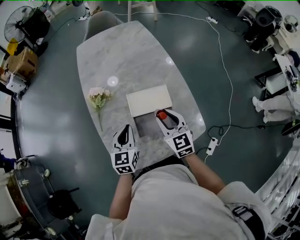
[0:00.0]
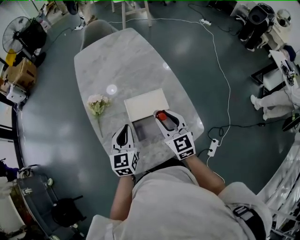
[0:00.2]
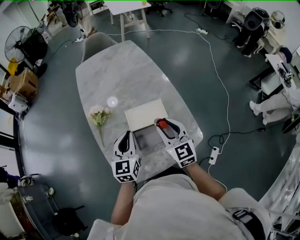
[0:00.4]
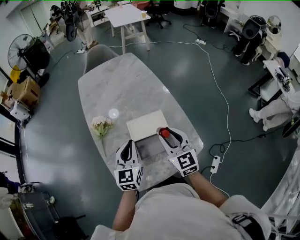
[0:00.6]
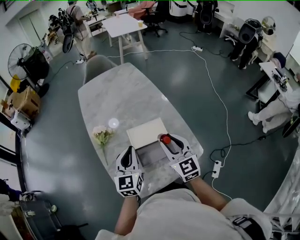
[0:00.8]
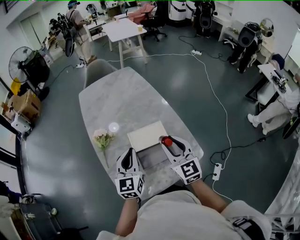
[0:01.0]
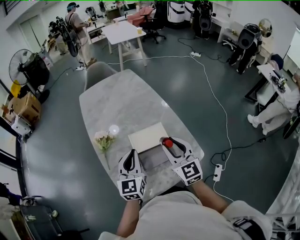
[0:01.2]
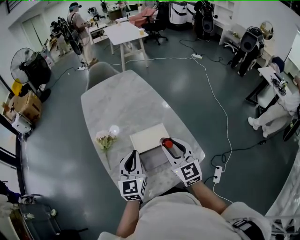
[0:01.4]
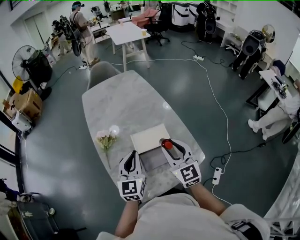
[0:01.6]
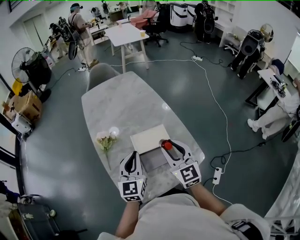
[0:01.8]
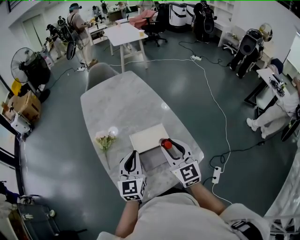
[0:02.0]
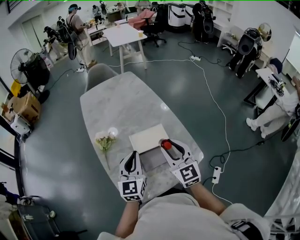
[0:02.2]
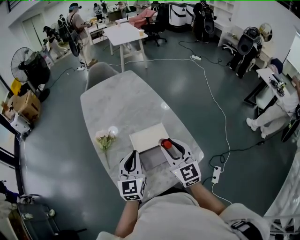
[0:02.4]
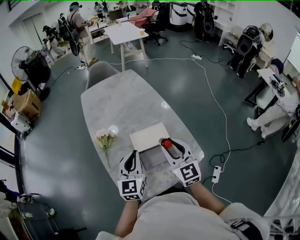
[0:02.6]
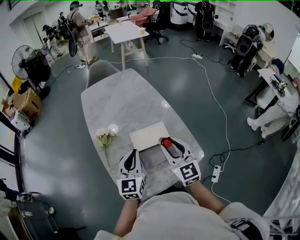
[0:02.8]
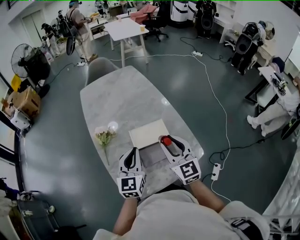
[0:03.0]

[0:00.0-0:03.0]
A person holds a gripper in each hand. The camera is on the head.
0:00.0 to 0:01.6: The two grippers go approximately 10 cm upward.
0:01.6 to 0:03.0: Both grippers stay about where they are.

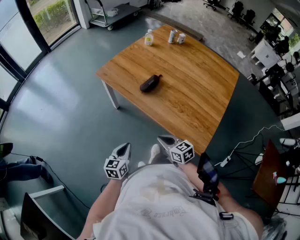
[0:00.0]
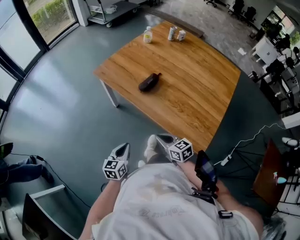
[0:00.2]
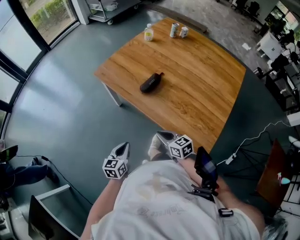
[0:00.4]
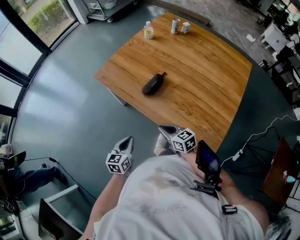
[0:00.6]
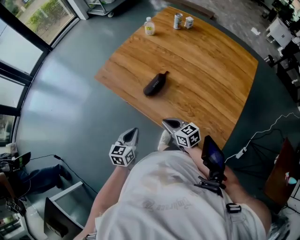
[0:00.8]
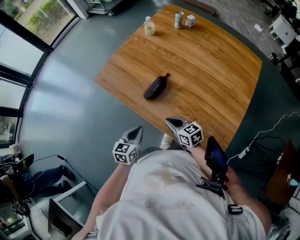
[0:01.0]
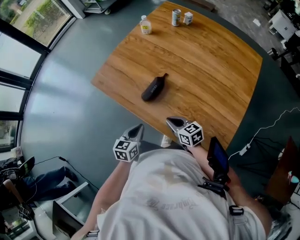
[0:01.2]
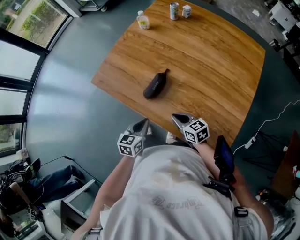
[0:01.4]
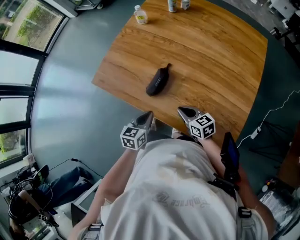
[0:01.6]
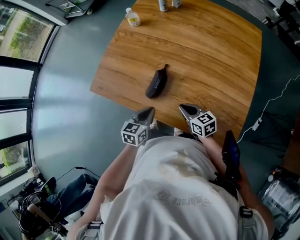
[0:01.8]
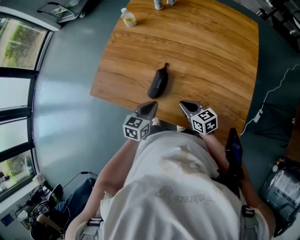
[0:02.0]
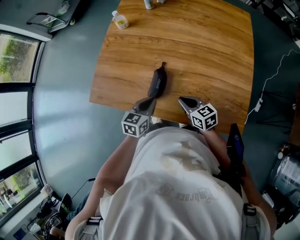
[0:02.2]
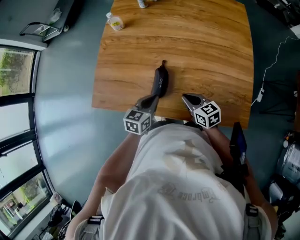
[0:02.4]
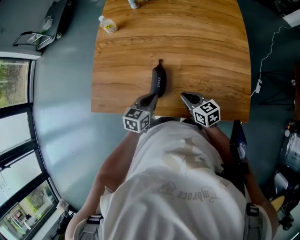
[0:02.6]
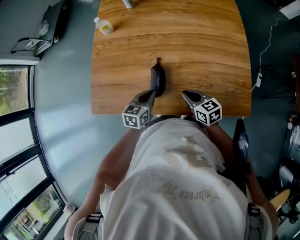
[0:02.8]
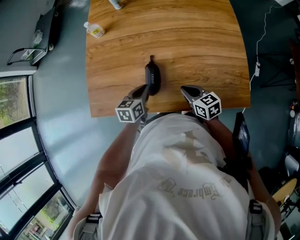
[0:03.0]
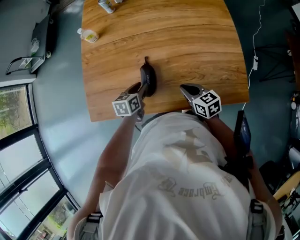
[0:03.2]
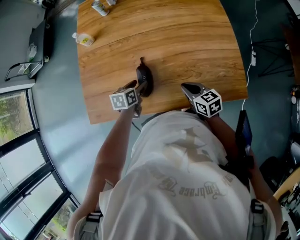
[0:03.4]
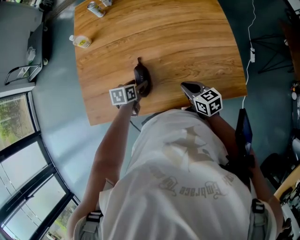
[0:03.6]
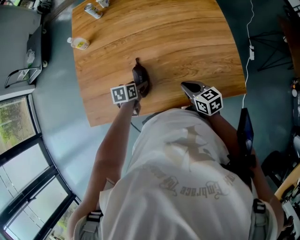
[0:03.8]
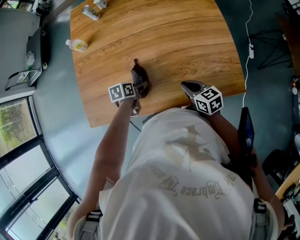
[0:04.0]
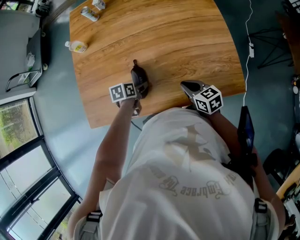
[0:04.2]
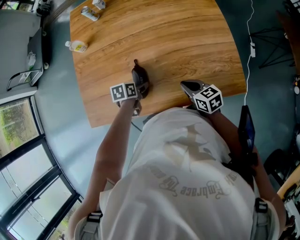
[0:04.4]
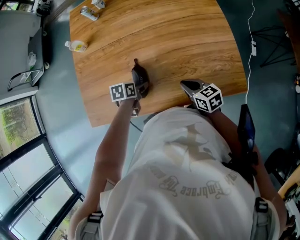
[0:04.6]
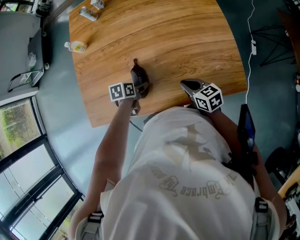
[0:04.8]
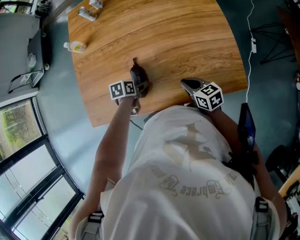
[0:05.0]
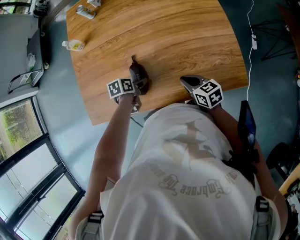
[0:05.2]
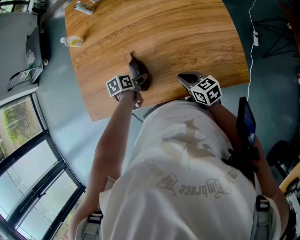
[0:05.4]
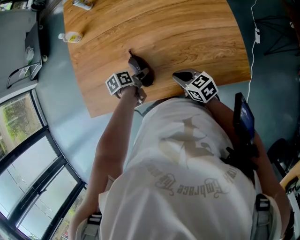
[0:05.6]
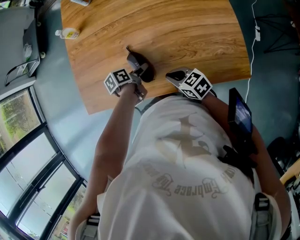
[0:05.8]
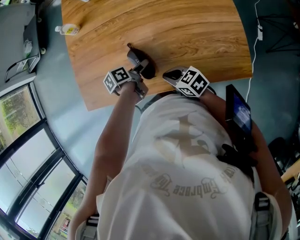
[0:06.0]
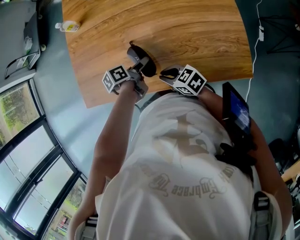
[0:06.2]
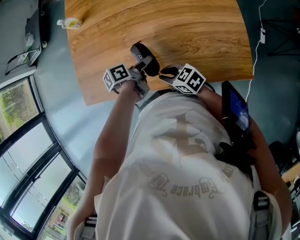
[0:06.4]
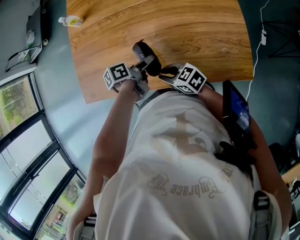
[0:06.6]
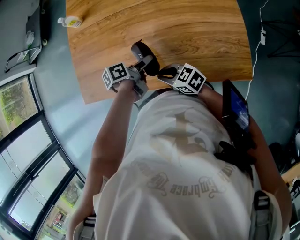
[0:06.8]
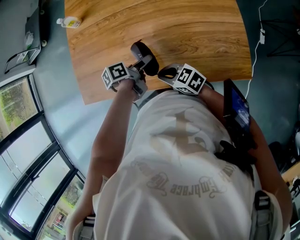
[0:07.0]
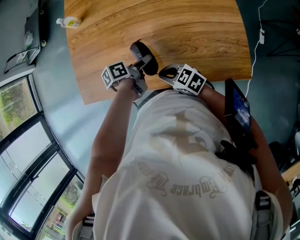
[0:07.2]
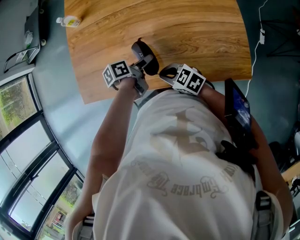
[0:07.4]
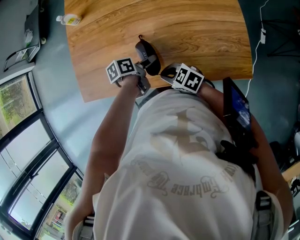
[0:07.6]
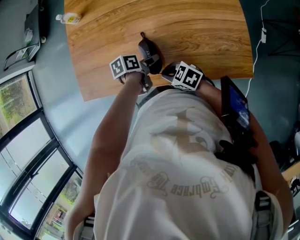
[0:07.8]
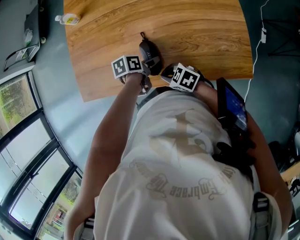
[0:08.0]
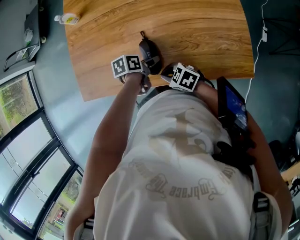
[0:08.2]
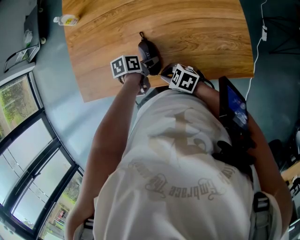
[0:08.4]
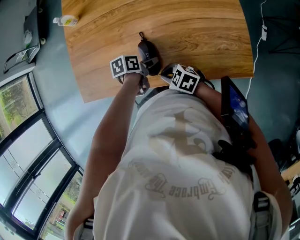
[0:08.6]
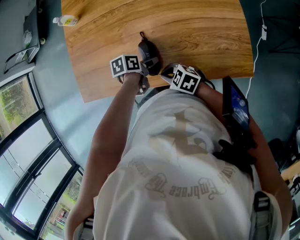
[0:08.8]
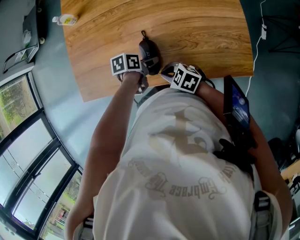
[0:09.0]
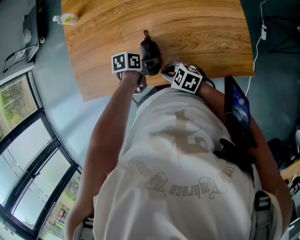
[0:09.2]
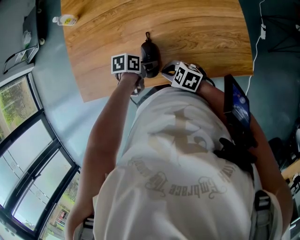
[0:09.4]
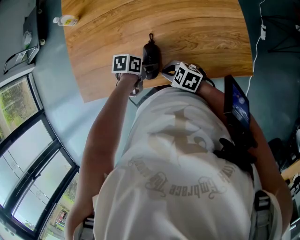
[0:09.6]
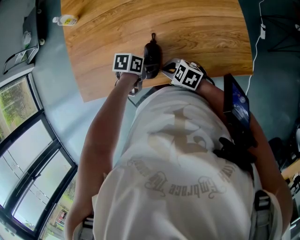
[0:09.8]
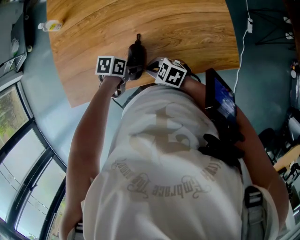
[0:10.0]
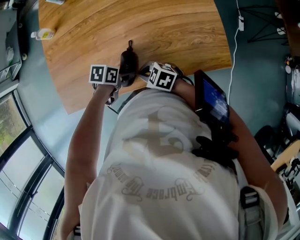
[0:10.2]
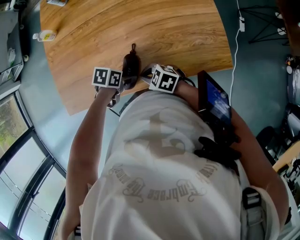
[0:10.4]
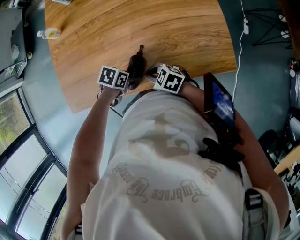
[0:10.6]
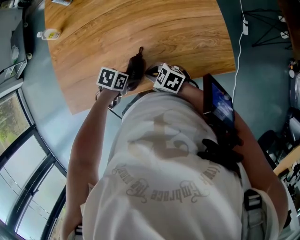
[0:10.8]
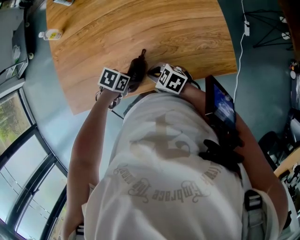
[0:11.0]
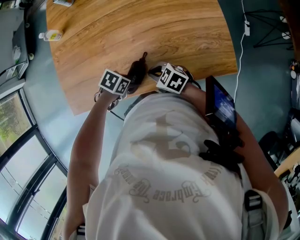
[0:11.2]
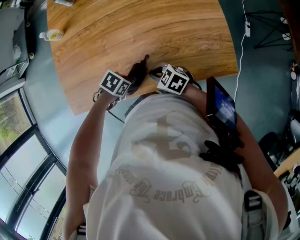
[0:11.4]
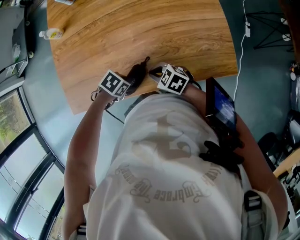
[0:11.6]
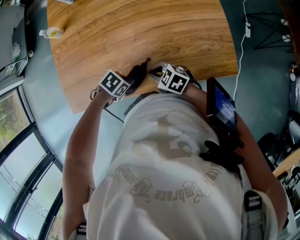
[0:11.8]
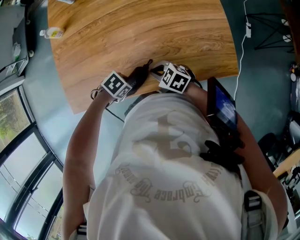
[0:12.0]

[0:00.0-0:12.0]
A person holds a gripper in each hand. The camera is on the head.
0:00.0 to 0:01.6: The two grippers go approximately 25 cm forward and to the right. The left gripper rotates roughly 20 degrees.
0:01.6 to 0:03.0: The right gripper rotates roughly 30 degrees. Meanwhile the left gripper changes place by approximately 15 cm, and rotates about 20 degrees.
0:03.0 to 0:04.4: The left gripper shifts some 5 cm downward, rotates about 30 degrees, and opens up, while the right gripper shifts some 5 cm to the right.
0:04.4 to 0:06.0: The left gripper swivels roughly 30 degrees. The right gripper heads to the left, covering approximately 10 cm, and swivels approximately 20 degrees.
0:06.0 to 0:07.6: There are only small adjustments of the grippers.
0:07.6 to 0:09.0: The grippers stay close to where they were, moving slightly.
0:09.0 to 0:10.4: The left gripper rotates approximately 30 degrees.
0:10.4 to 0:12.0: The left gripper changes place by some 5 cm, and swivels some 40 degrees.

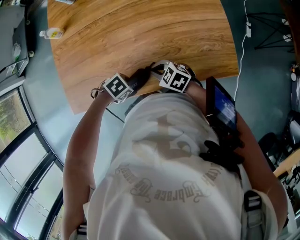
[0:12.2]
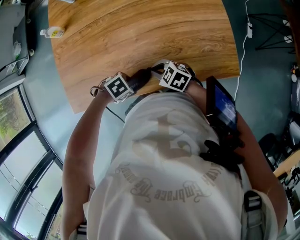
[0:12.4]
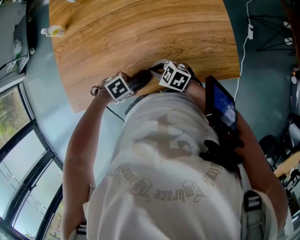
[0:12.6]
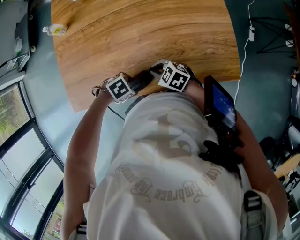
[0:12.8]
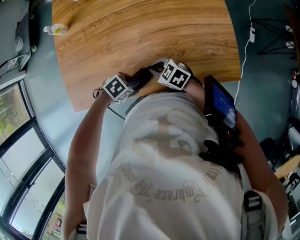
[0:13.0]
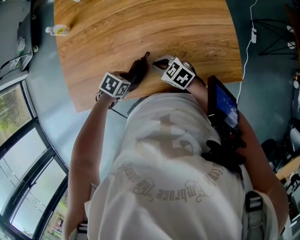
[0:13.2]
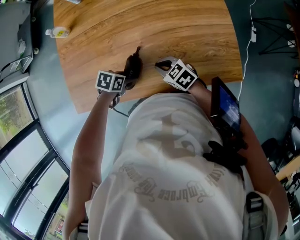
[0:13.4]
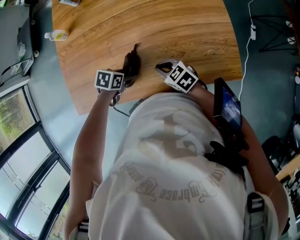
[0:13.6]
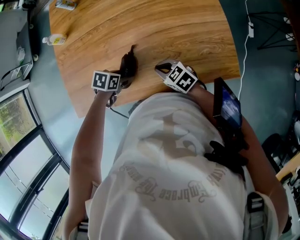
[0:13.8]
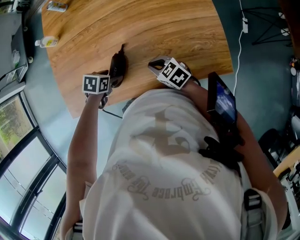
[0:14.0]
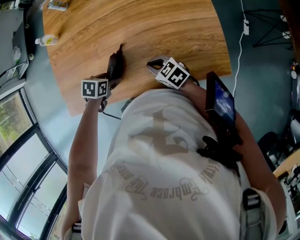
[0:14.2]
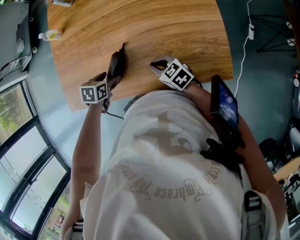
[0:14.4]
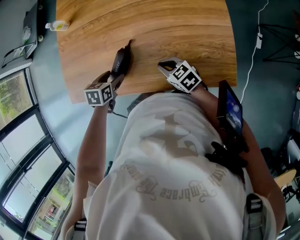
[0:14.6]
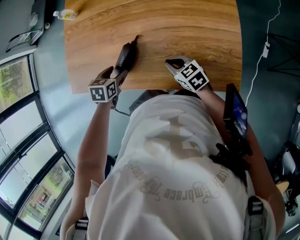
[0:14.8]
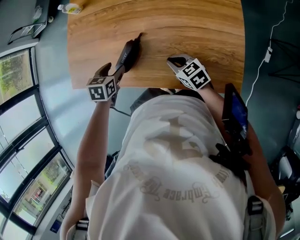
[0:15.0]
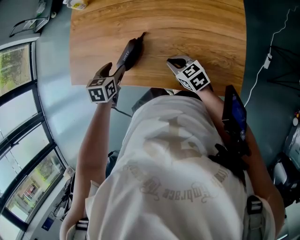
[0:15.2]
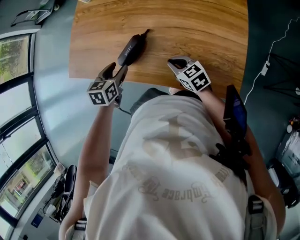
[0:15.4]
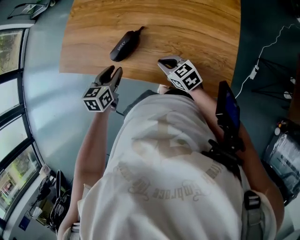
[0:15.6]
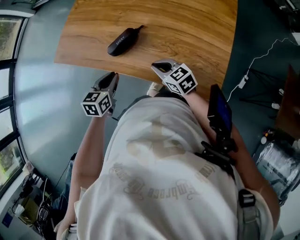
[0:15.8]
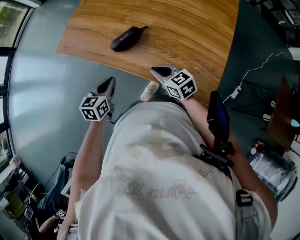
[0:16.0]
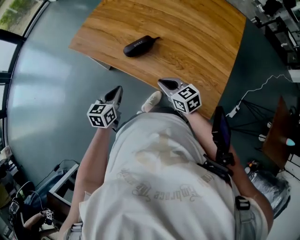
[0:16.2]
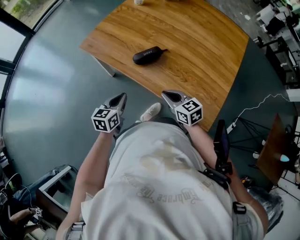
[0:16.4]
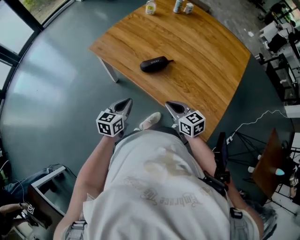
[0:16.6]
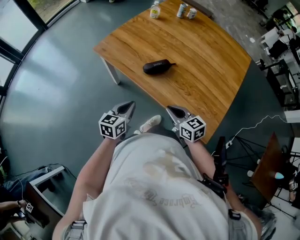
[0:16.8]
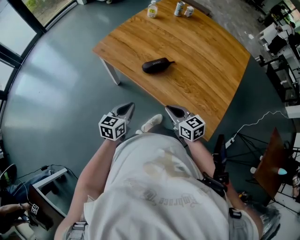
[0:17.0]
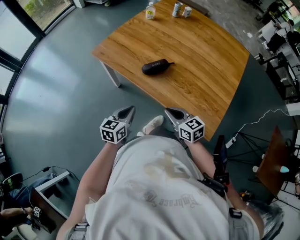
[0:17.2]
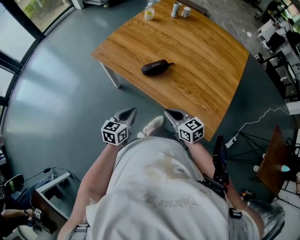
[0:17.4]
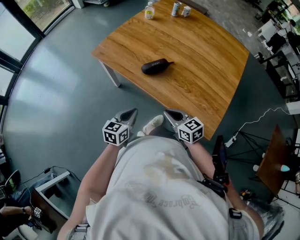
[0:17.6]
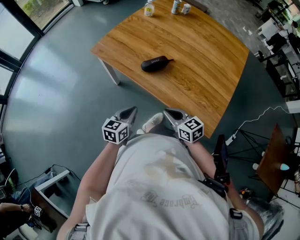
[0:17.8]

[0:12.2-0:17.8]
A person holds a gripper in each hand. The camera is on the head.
0:12.2 to 0:13.6: The left gripper ends up roughly 10 cm from where it was, and changes its angle by roughly 40 degrees.
0:13.6 to 0:15.0: The left gripper travels upward by roughly 5 cm, and changes its angle by approximately 40 degrees, while the right gripper changes place by about 5 cm.
0:15.0 to 0:16.4: The right gripper travels backward, upward and to the left by some 15 cm. Meanwhile the left gripper shifts roughly 20 cm backward, tilts its fingers approximately 30 degrees upward, and closes up.
0:16.4 to 0:17.8: The right gripper is displaced backward by roughly 5 cm. The left gripper ends up approximately 5 cm from where it was.

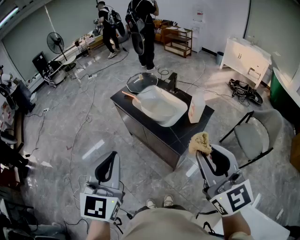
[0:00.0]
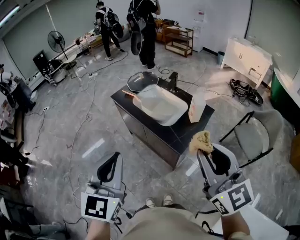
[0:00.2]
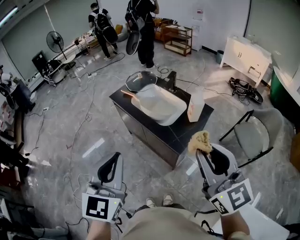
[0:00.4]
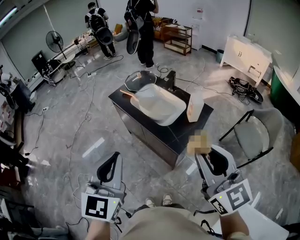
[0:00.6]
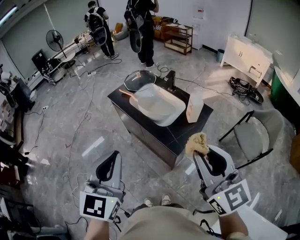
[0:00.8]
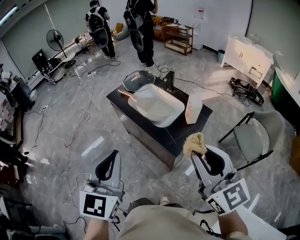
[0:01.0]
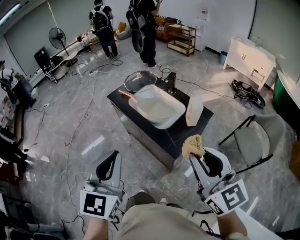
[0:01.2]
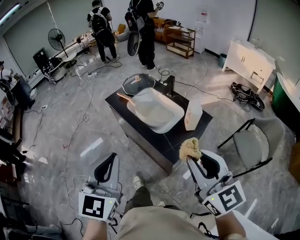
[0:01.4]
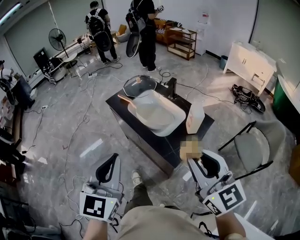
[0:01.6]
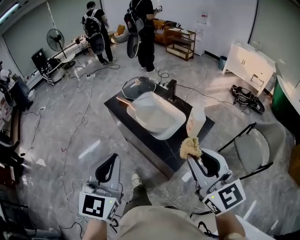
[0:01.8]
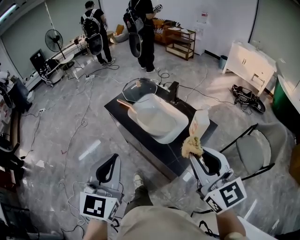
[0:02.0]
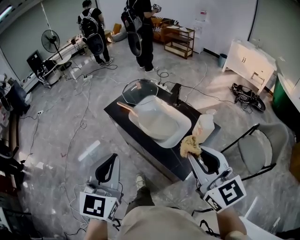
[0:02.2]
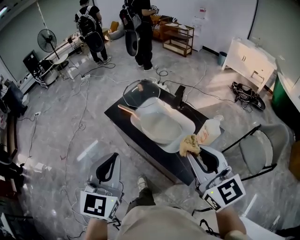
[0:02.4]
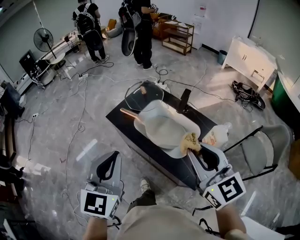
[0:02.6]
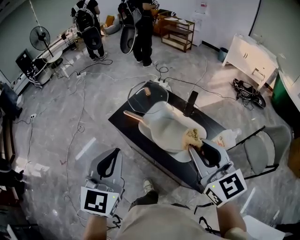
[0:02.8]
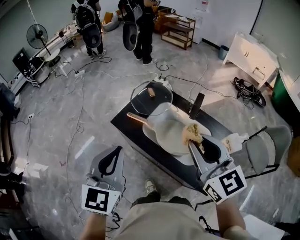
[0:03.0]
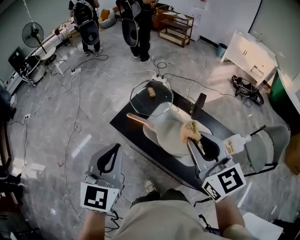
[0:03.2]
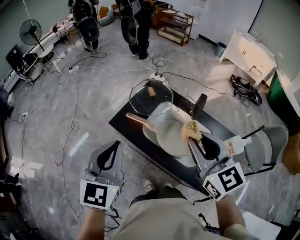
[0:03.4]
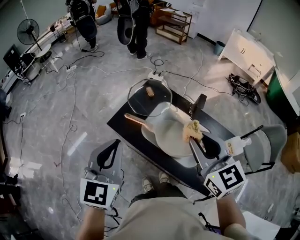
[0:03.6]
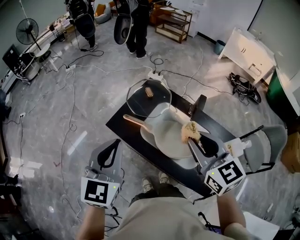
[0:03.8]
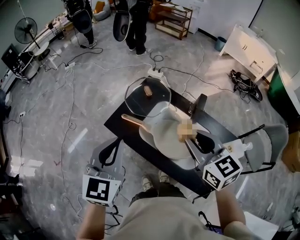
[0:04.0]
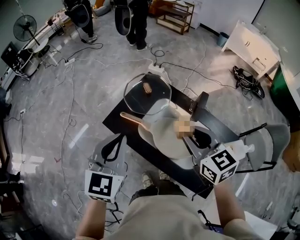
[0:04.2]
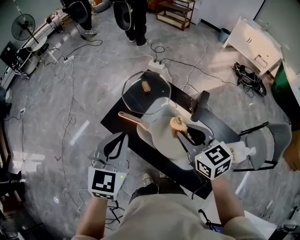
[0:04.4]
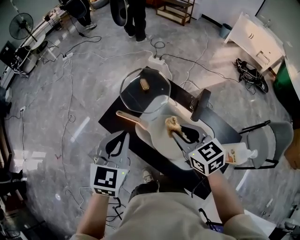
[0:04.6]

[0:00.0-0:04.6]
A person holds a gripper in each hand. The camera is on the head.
0:00.0 to 0:01.6: The left gripper is displaced forward and to the right by approximately 10 cm, while the right gripper heads forward and downward, covering approximately 10 cm.
0:01.6 to 0:03.0: Both grippers move forward and to the left, roughly 35 cm.
0:03.0 to 0:04.6: The right gripper goes roughly 25 cm downward and forward, and changes its angle by approximately 30 degrees. The left gripper is displaced forward and downward by approximately 20 cm.
